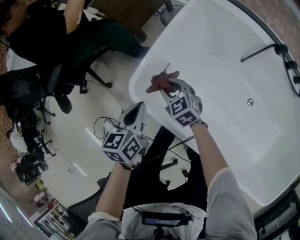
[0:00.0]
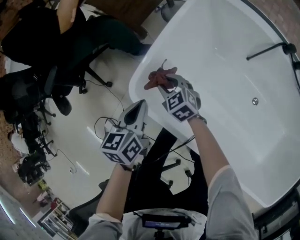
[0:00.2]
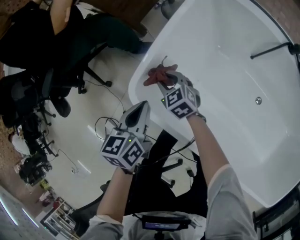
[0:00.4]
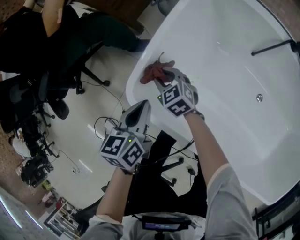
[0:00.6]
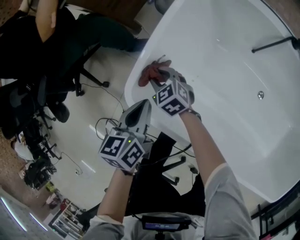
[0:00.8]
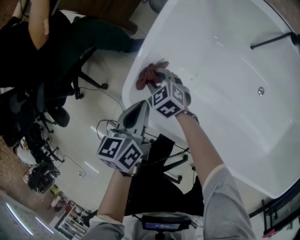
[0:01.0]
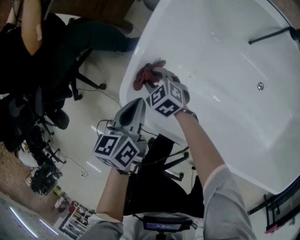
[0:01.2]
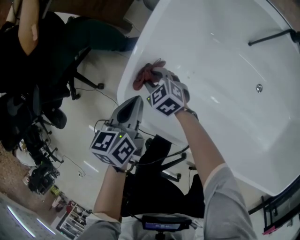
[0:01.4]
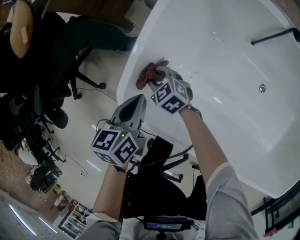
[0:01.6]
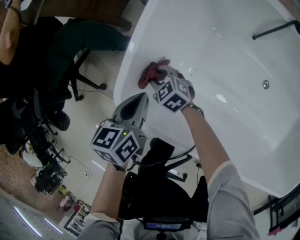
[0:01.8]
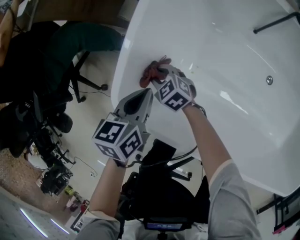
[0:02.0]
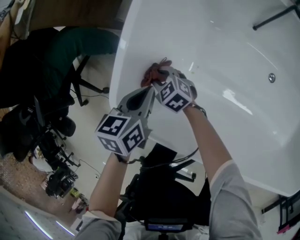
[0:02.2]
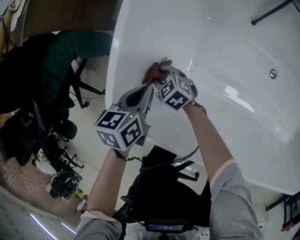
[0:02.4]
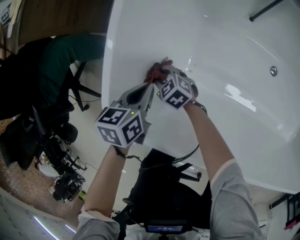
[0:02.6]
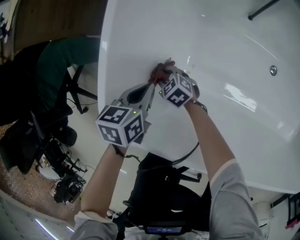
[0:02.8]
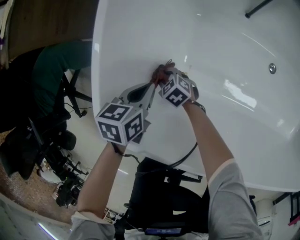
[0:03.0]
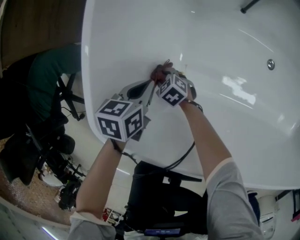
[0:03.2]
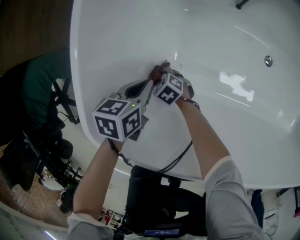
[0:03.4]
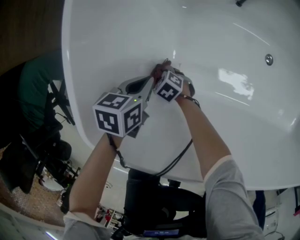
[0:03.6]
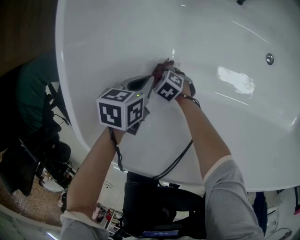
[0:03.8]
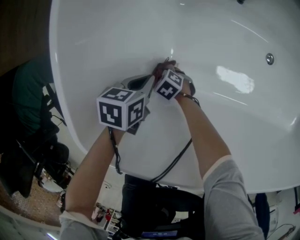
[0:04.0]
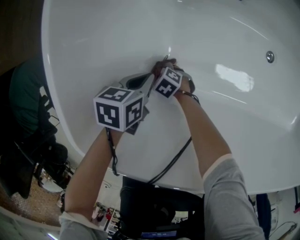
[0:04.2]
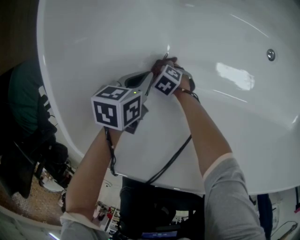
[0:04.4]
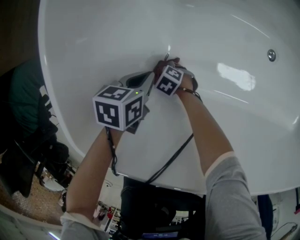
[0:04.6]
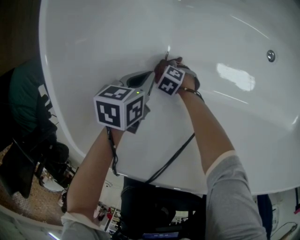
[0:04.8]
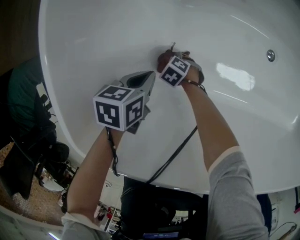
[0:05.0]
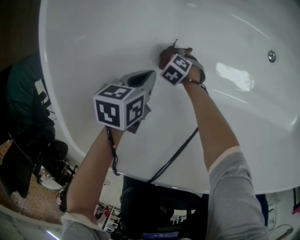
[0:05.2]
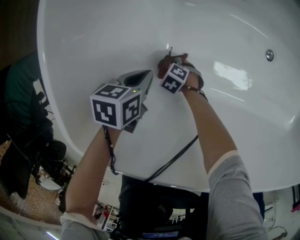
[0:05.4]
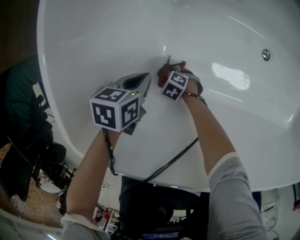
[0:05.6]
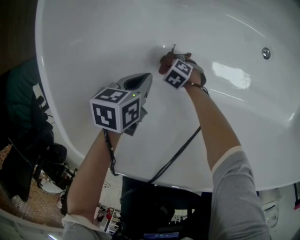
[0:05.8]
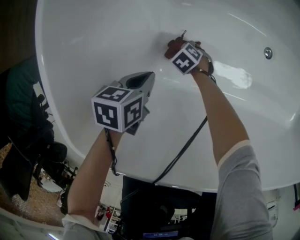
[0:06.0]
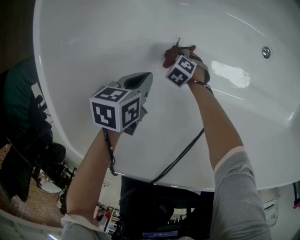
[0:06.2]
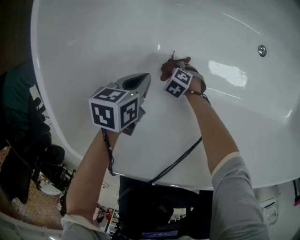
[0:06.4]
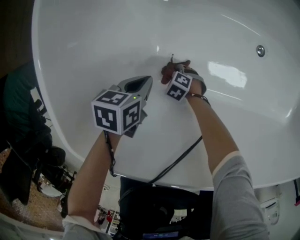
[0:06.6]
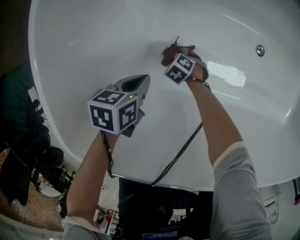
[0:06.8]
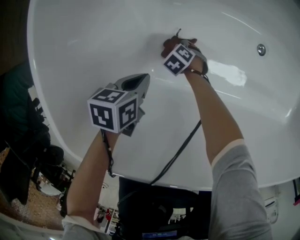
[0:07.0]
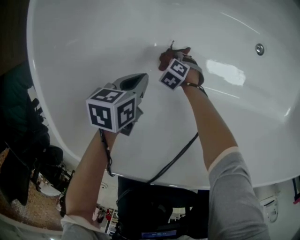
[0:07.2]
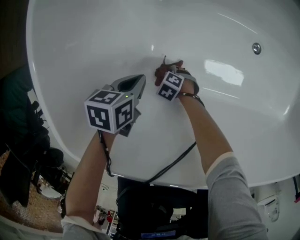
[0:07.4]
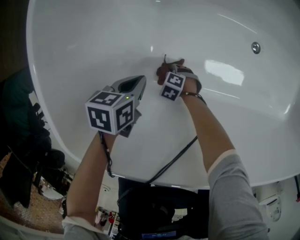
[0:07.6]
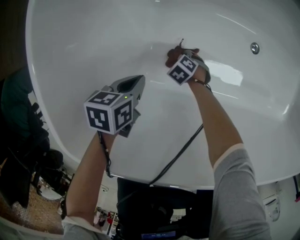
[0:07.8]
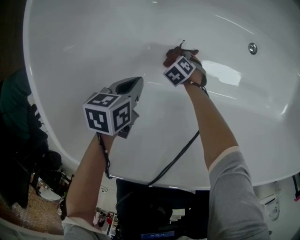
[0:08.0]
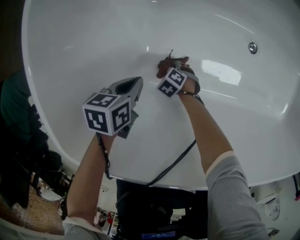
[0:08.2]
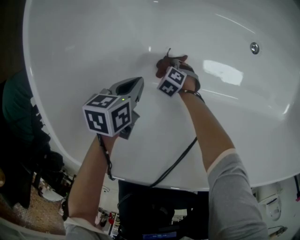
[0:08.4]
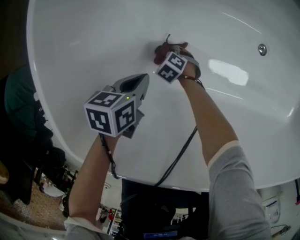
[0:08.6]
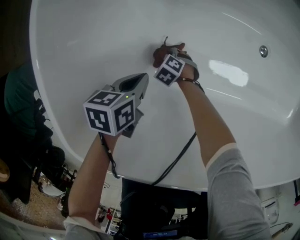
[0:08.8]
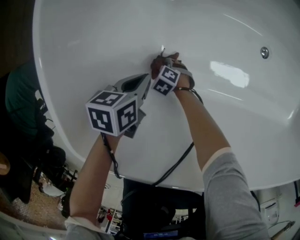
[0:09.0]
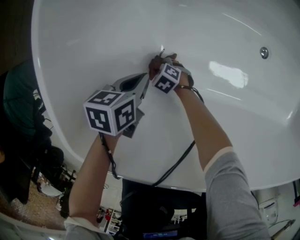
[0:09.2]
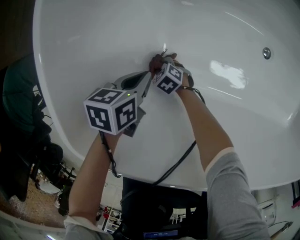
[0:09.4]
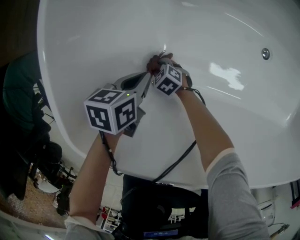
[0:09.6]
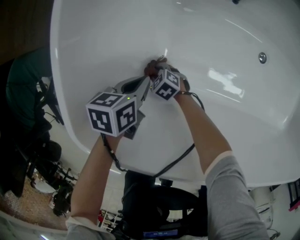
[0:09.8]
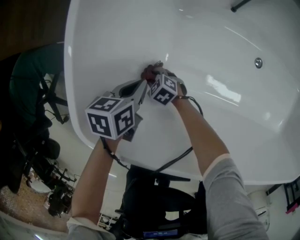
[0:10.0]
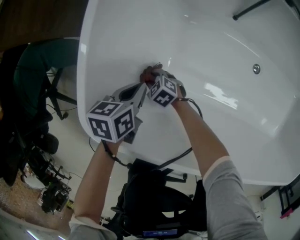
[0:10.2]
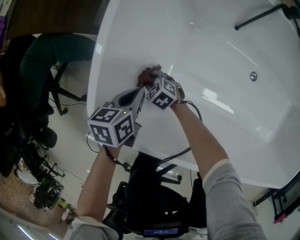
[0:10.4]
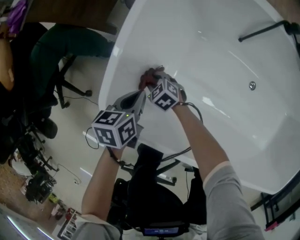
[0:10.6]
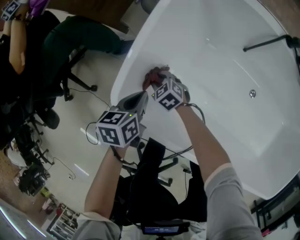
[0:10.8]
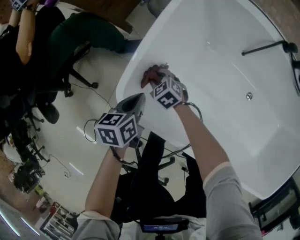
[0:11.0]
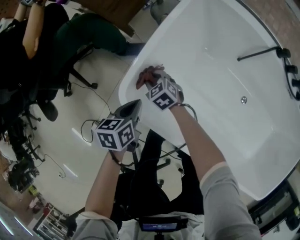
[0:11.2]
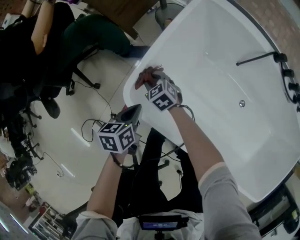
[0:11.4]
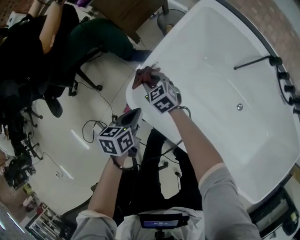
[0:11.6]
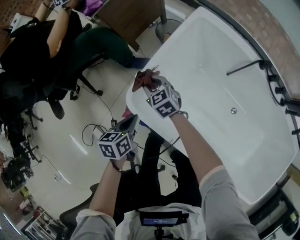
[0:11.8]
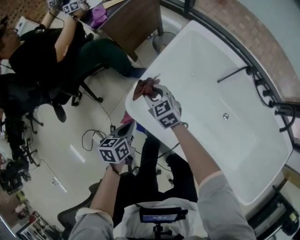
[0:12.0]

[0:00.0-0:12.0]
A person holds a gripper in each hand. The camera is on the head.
0:00.0 to 0:01.6: The left gripper goes approximately 10 cm downward and forward. The right gripper heads downward, forward and to the left, covering roughly 15 cm.
0:01.6 to 0:03.0: The left gripper travels downward and to the right by approximately 15 cm, and swivels some 30 degrees. Meanwhile the right gripper moves downward, approximately 15 cm.
0:03.0 to 0:04.4: Both grippers travel together downward, some 10 cm.
0:04.4 to 0:06.0: The right gripper ends up approximately 15 cm from where it was.
0:06.0 to 0:07.6: The right gripper changes place by roughly 10 cm.
0:07.6 to 0:09.0: The right gripper ends up roughly 10 cm from where it was.
0:09.0 to 0:10.4: The two grippers go some 15 cm upward. The right gripper changes its angle by some 20 degrees.
0:10.4 to 0:12.0: The left gripper heads upward, backward and to the left, covering some 25 cm, and rotates about 30 degrees. Meanwhile the right gripper heads upward, covering some 35 cm, and swivels roughly 20 degrees.

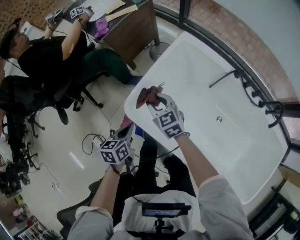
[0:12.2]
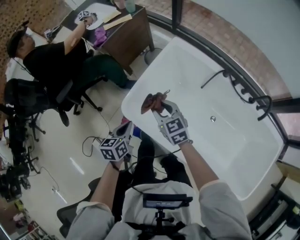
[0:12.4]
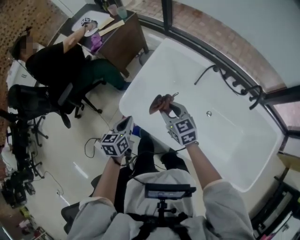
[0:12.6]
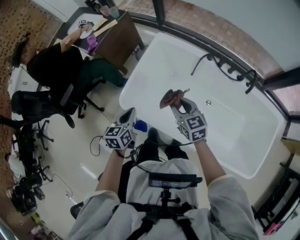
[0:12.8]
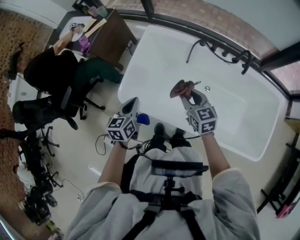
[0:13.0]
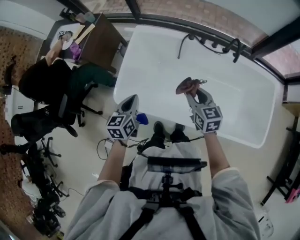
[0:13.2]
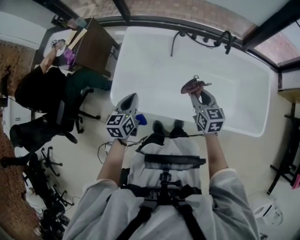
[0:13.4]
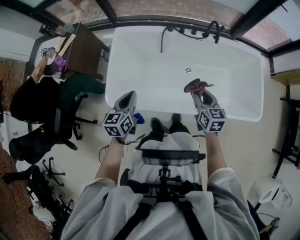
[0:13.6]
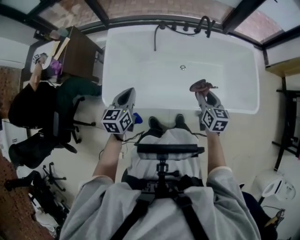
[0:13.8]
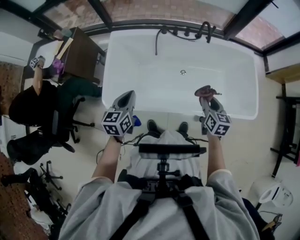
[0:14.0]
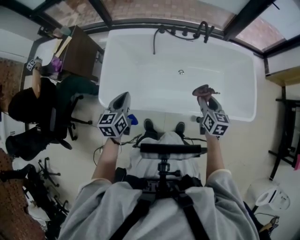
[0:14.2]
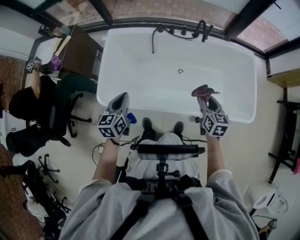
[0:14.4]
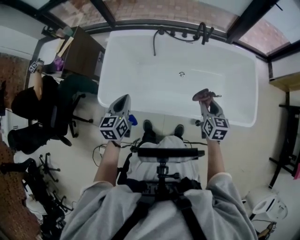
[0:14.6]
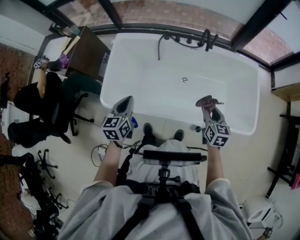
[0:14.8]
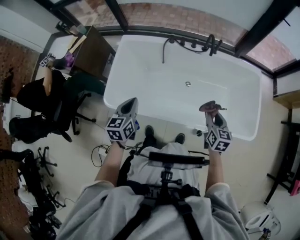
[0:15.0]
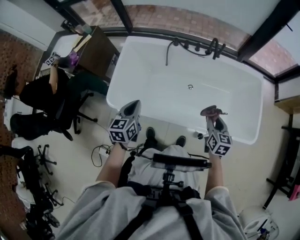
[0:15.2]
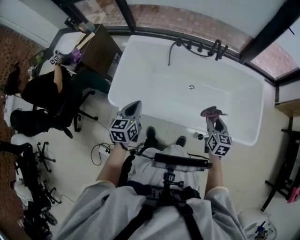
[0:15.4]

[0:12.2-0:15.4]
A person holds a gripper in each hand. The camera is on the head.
0:12.2 to 0:13.8: The left gripper heads upward, covering roughly 15 cm, and turns by approximately 40 degrees, while the right gripper moves roughly 50 cm, and swivels roughly 70 degrees.
0:13.8 to 0:15.4: The right gripper shifts about 10 cm to the right; the left gripper travels to the right and backward by approximately 10 cm.

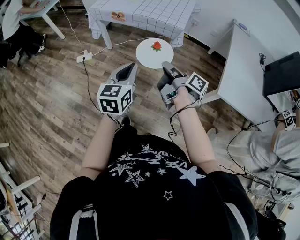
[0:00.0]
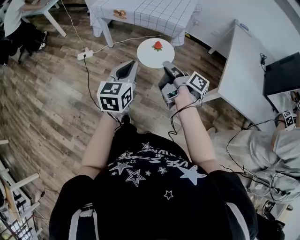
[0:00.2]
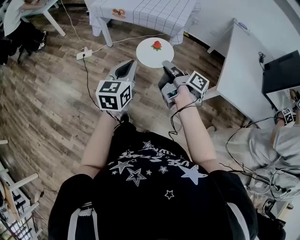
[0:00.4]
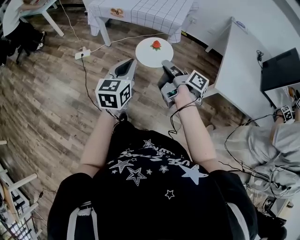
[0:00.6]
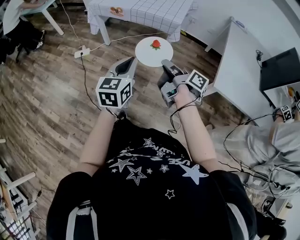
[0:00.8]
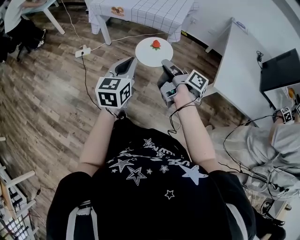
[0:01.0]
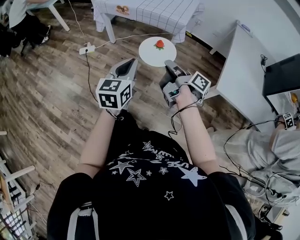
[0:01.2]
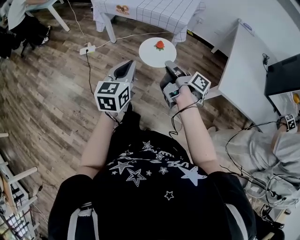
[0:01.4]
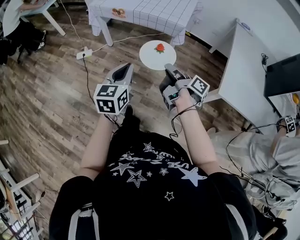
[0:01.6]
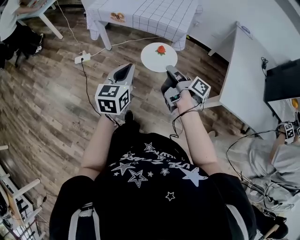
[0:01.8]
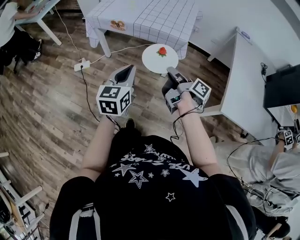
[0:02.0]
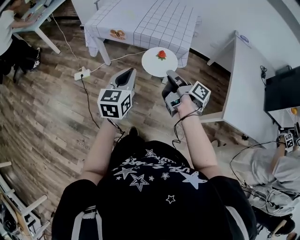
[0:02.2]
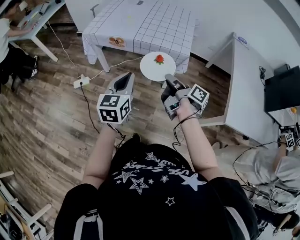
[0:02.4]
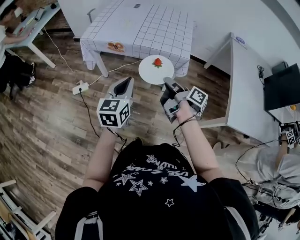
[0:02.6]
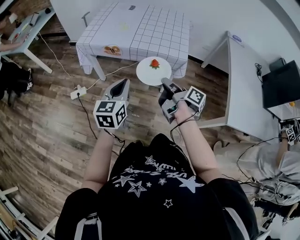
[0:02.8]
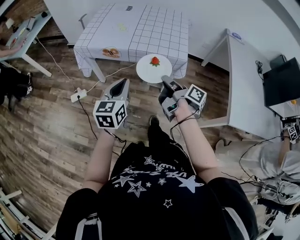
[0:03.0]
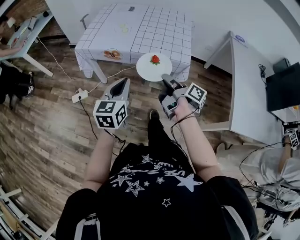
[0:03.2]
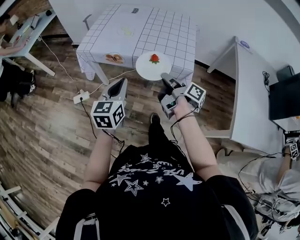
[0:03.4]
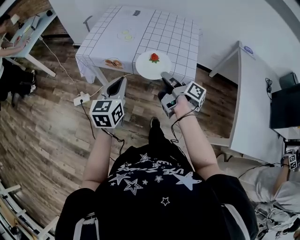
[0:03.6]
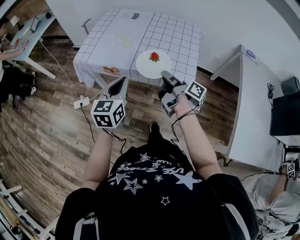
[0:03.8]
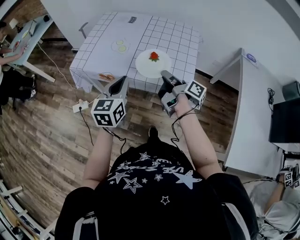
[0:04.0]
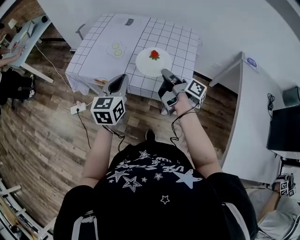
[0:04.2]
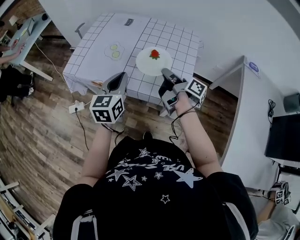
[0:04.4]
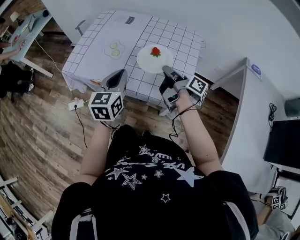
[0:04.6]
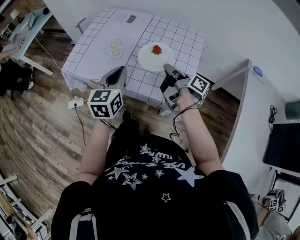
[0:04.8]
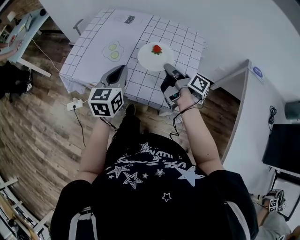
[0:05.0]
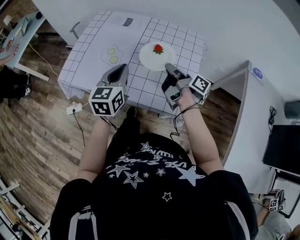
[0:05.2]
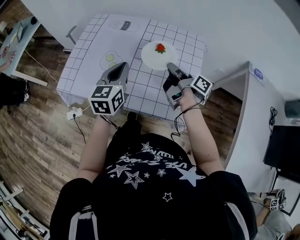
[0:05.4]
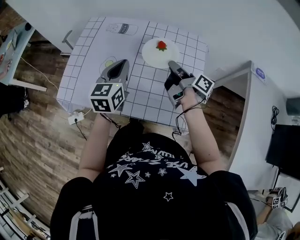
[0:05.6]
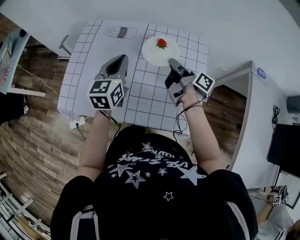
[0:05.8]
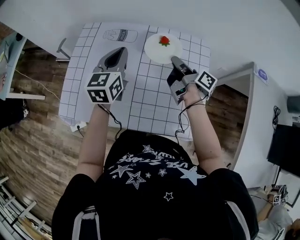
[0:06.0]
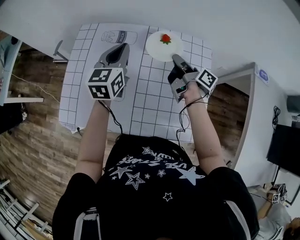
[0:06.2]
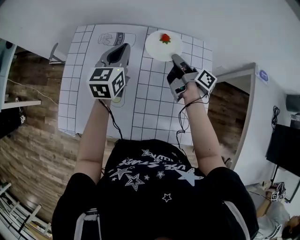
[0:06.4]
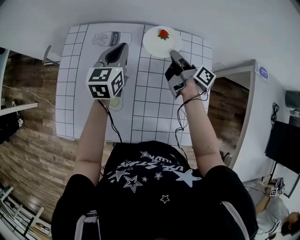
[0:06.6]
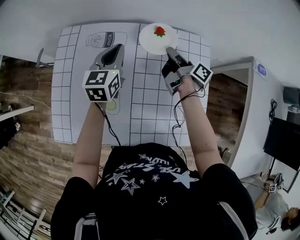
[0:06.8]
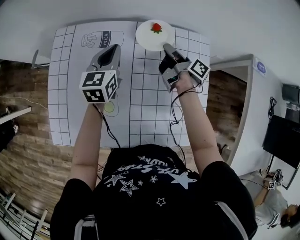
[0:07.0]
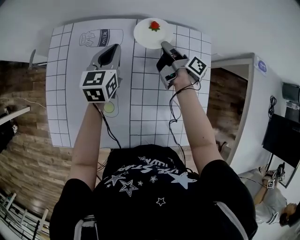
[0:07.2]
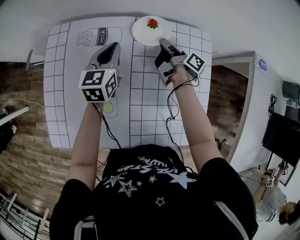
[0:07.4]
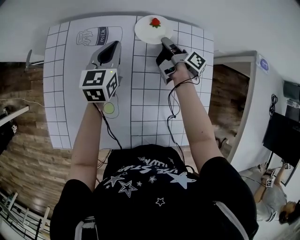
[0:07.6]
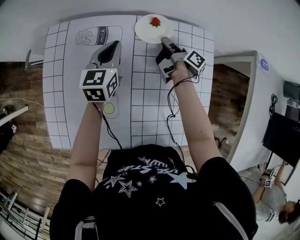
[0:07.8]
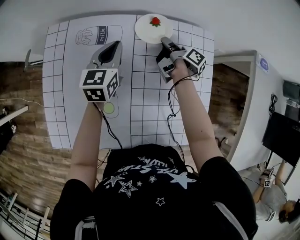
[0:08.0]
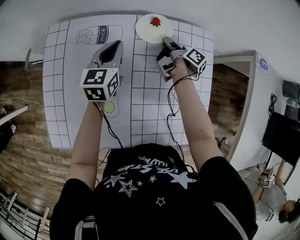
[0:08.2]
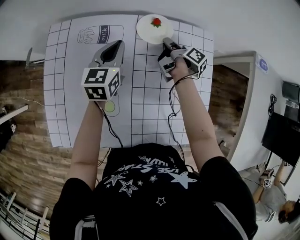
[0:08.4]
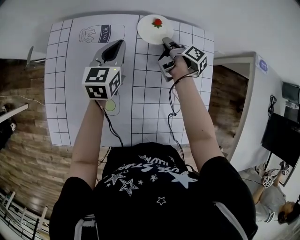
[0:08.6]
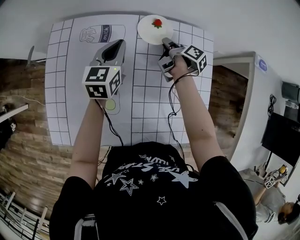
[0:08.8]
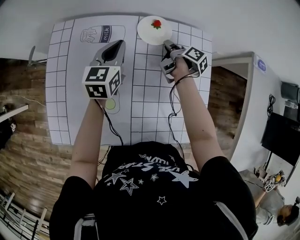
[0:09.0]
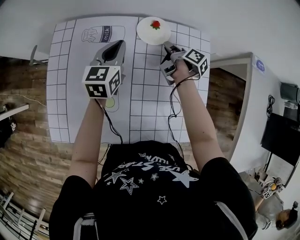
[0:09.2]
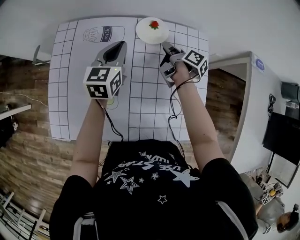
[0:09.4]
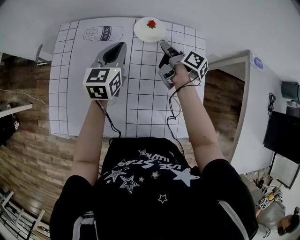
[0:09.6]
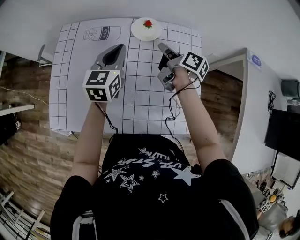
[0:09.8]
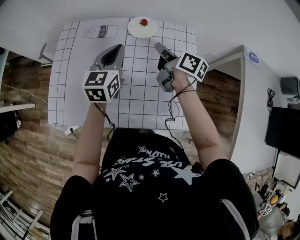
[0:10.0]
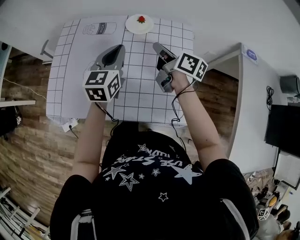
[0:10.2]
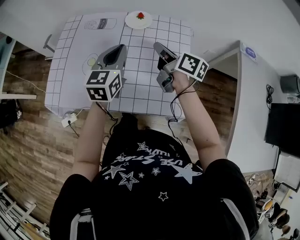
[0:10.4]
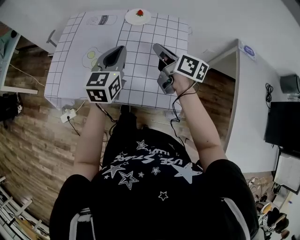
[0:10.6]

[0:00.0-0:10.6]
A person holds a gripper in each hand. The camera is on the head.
0:01.6 to 0:03.0: The left gripper shifts by roughly 25 cm.
0:03.0 to 0:04.6: The left gripper ends up some 30 cm from where it was.
0:04.6 to 0:06.0: The left gripper moves about 30 cm.
0:06.0 to 0:07.6: The left gripper changes place by about 20 cm.
0:09.0 to 0:10.6: The left gripper moves some 30 cm.
